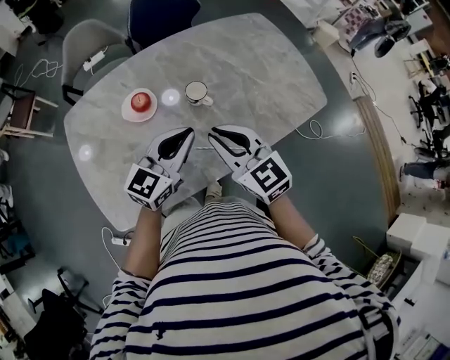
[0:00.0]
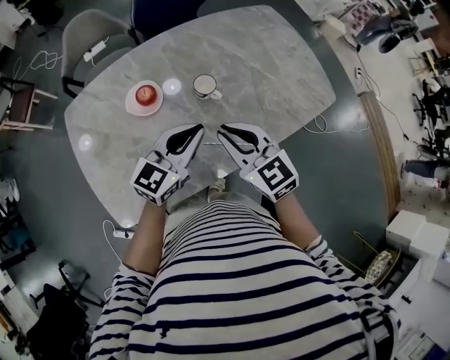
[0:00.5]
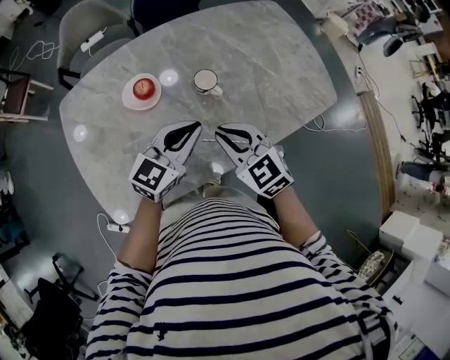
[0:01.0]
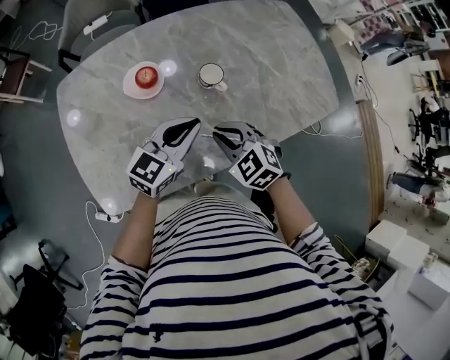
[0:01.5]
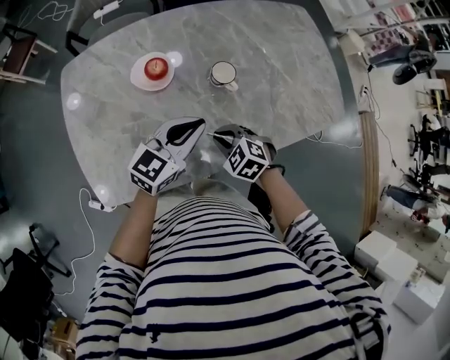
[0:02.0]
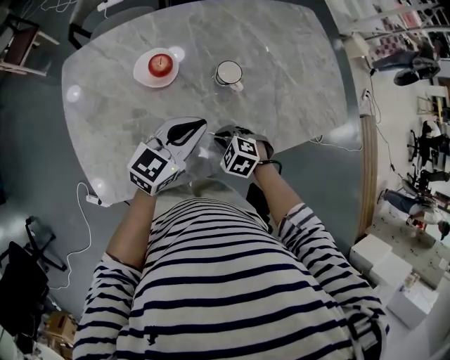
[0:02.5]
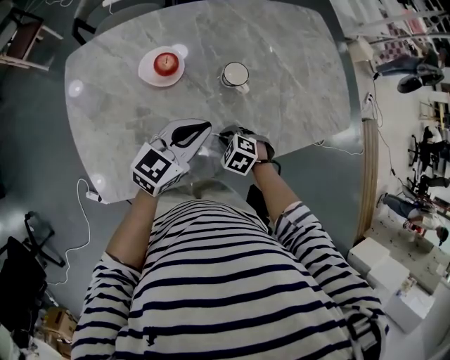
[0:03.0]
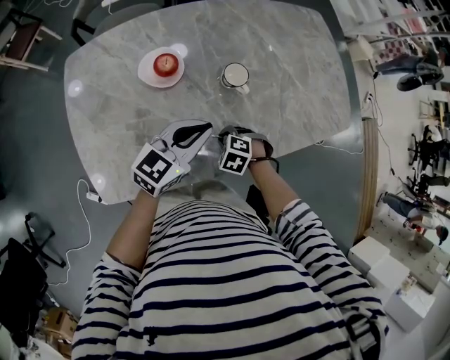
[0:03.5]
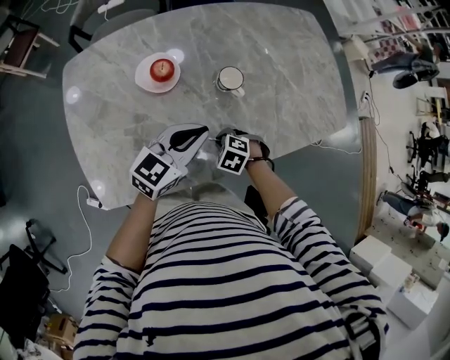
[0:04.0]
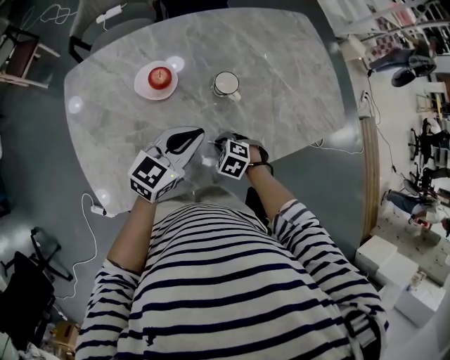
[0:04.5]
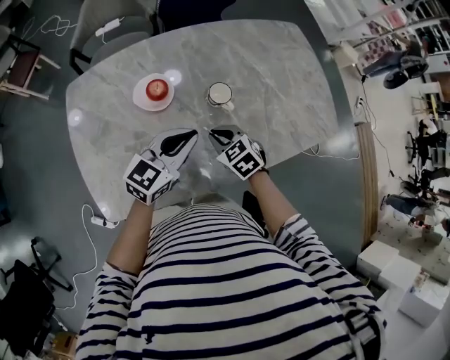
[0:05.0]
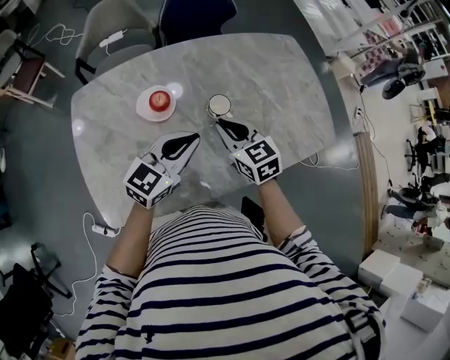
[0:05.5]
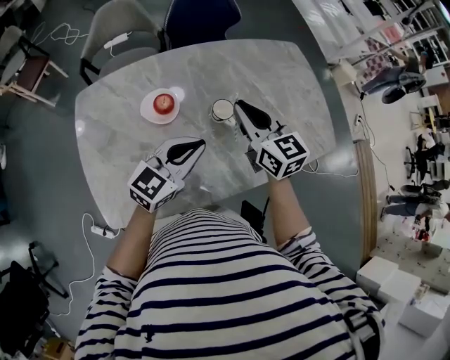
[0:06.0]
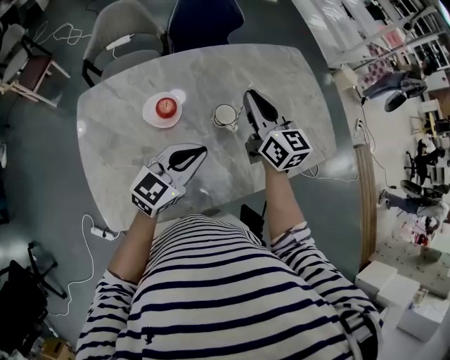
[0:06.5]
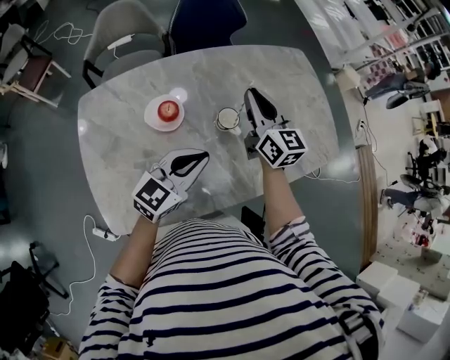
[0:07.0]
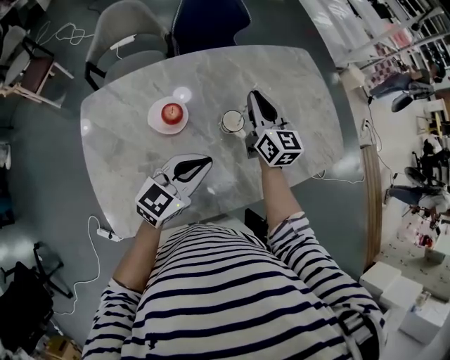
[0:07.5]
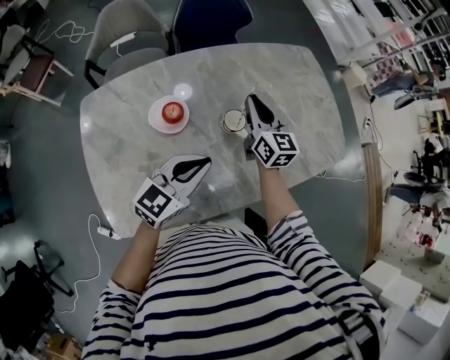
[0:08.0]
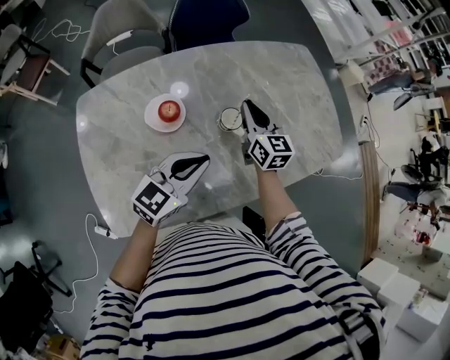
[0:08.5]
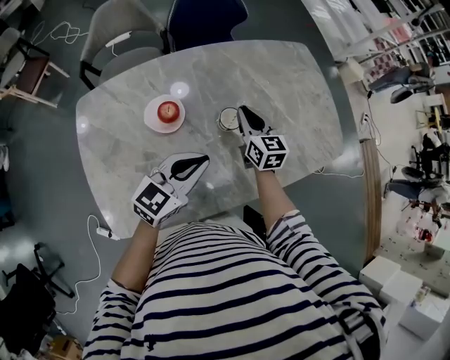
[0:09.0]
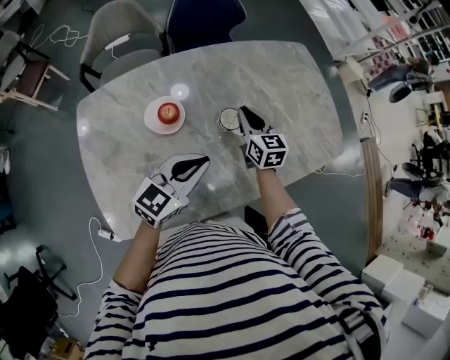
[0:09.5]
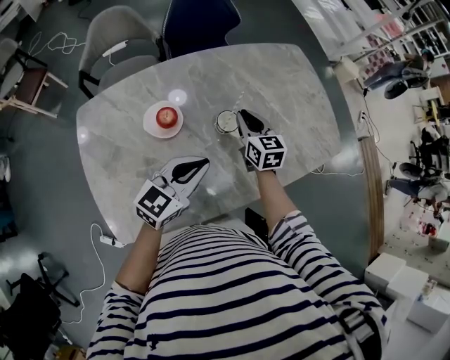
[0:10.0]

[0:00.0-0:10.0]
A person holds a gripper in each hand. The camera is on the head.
0:00.0 to 0:02.0: The left gripper heads downward, covering some 5 cm. Meanwhile the right gripper is displaced downward by about 20 cm, and tilts its fingers approximately 40 degrees downward.
0:02.0 to 0:04.0: The right gripper shifts roughly 10 cm downward.
0:04.0 to 0:06.0: The right gripper is displaced upward by approximately 30 cm, and angles its fingers upward, by approximately 60 degrees, while the left gripper travels upward by about 5 cm.
0:06.0 to 0:08.0: The right gripper is displaced forward and downward by some 10 cm.
0:08.0 to 0:10.0: The right gripper is displaced downward by approximately 5 cm.

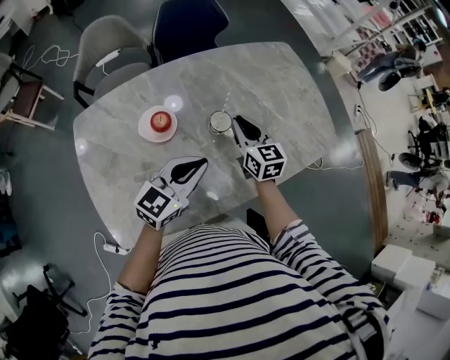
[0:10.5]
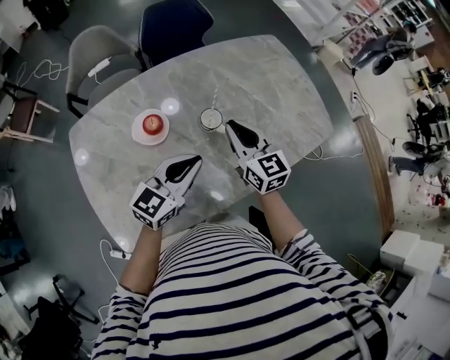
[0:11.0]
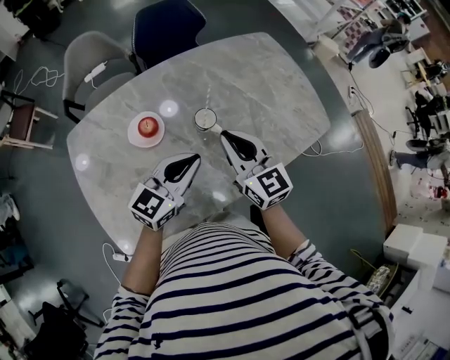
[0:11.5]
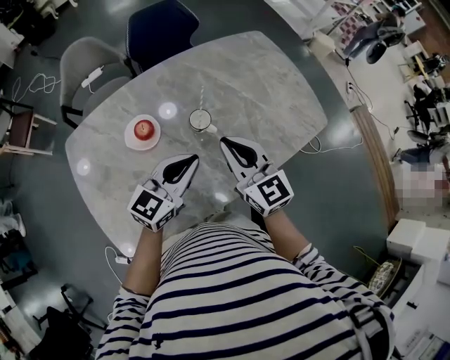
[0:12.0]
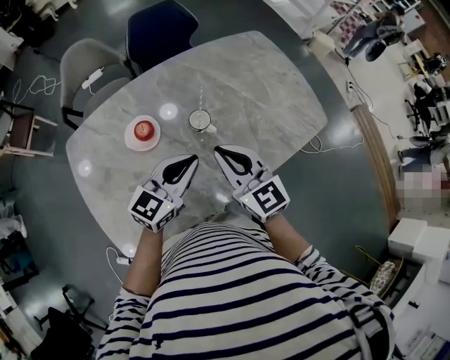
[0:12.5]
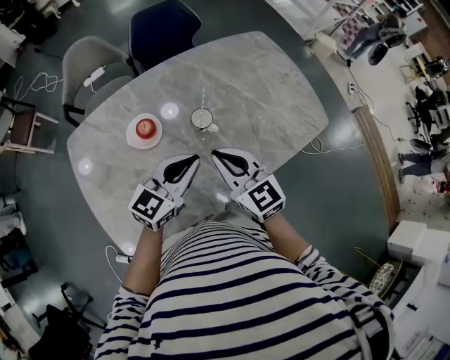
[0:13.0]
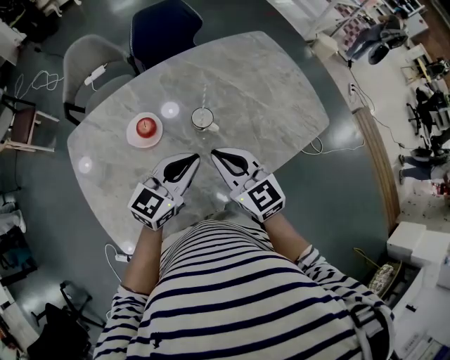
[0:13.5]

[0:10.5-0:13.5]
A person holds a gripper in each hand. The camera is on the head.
0:10.5 to 0:12.0: The right gripper is displaced backward and upward by some 15 cm.
0:12.0 to 0:13.5: There are only small adjustments of the grippers.

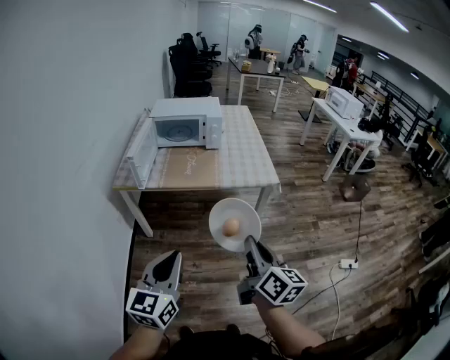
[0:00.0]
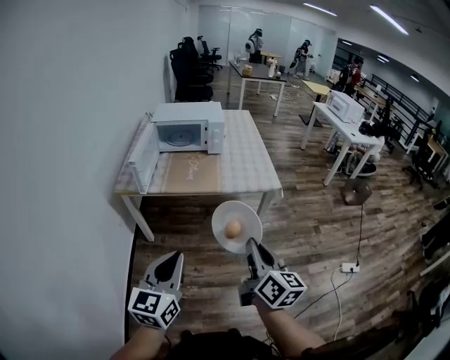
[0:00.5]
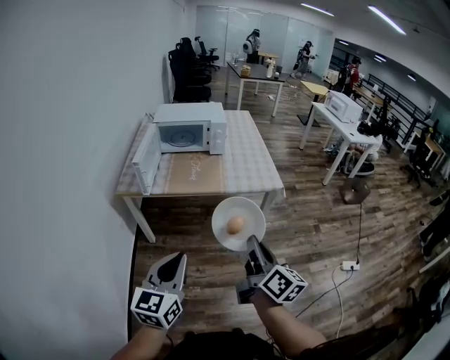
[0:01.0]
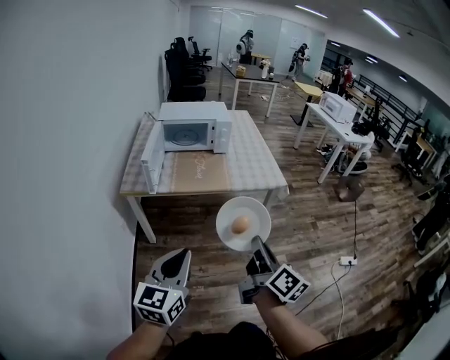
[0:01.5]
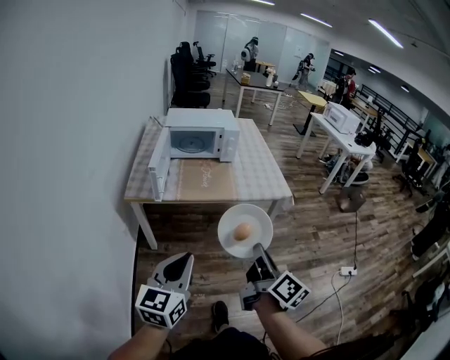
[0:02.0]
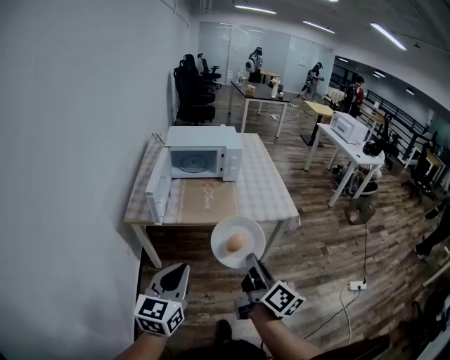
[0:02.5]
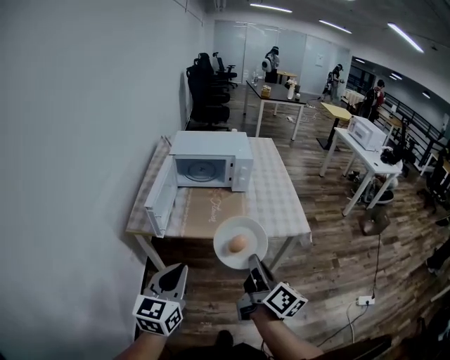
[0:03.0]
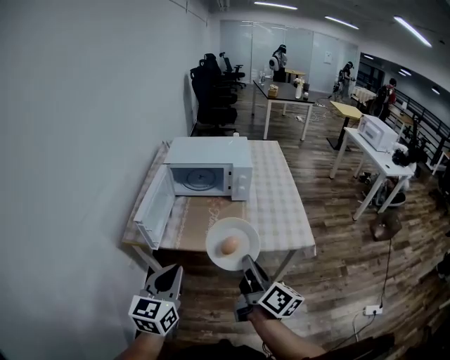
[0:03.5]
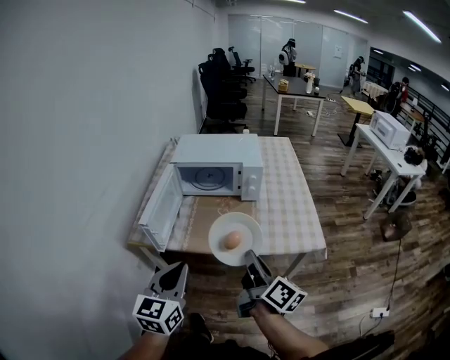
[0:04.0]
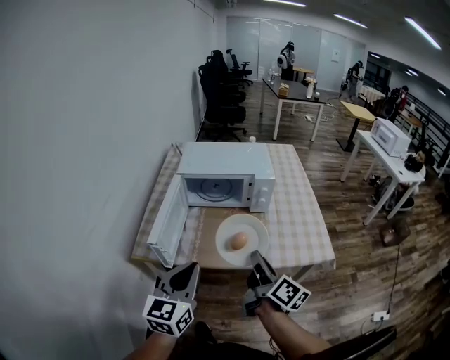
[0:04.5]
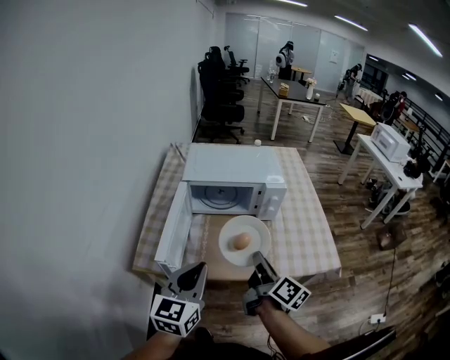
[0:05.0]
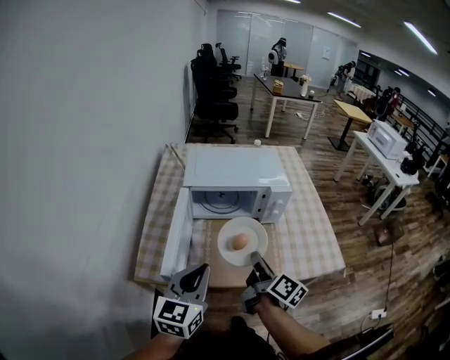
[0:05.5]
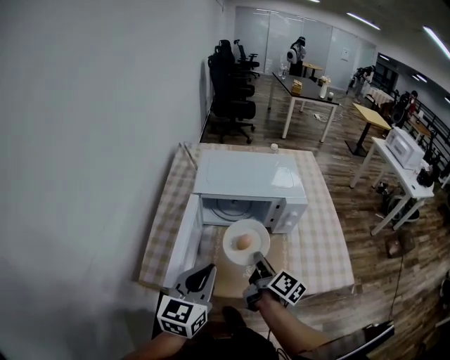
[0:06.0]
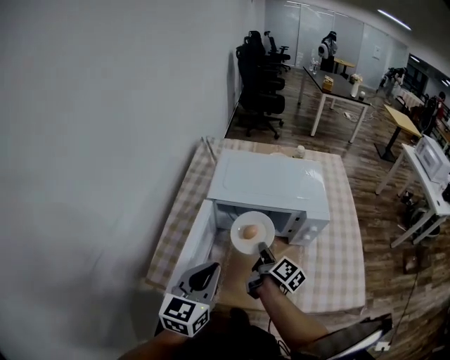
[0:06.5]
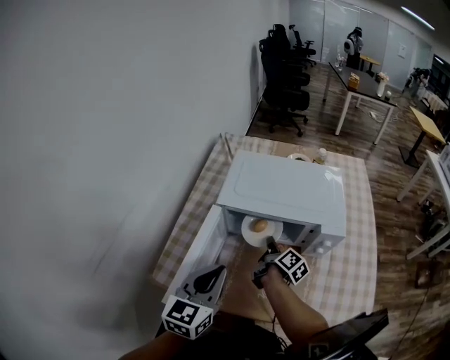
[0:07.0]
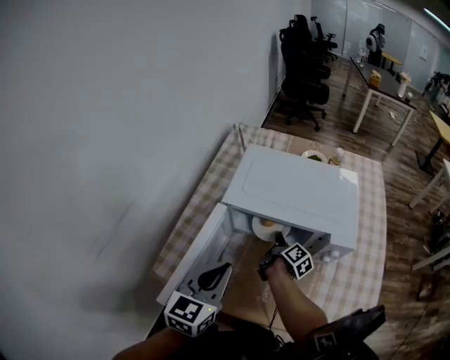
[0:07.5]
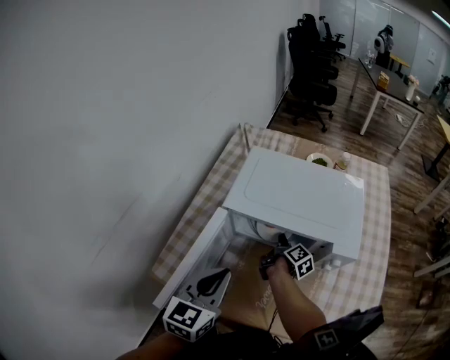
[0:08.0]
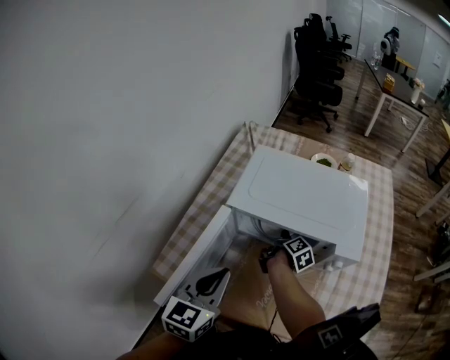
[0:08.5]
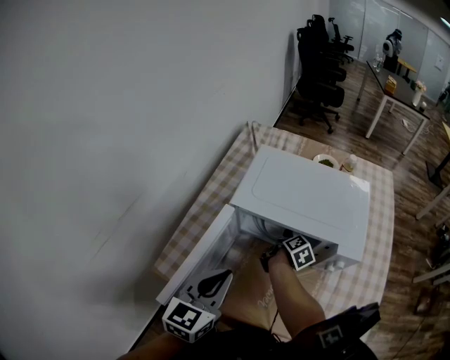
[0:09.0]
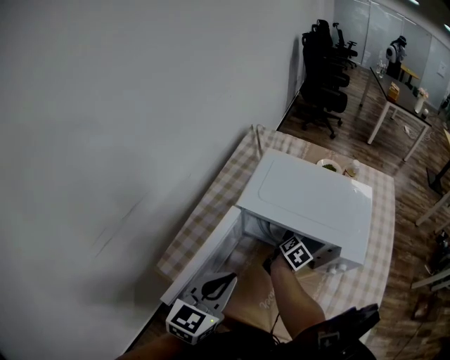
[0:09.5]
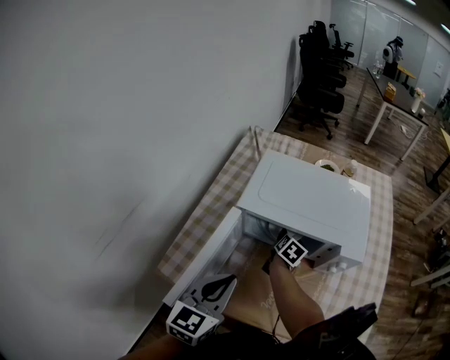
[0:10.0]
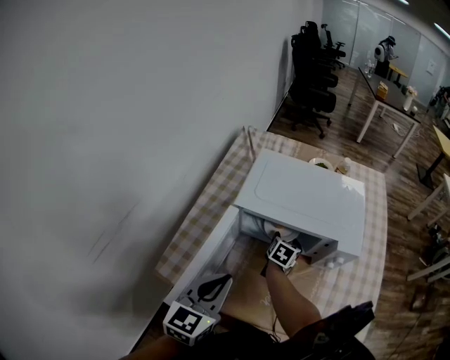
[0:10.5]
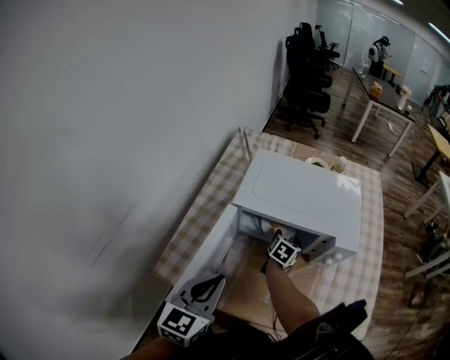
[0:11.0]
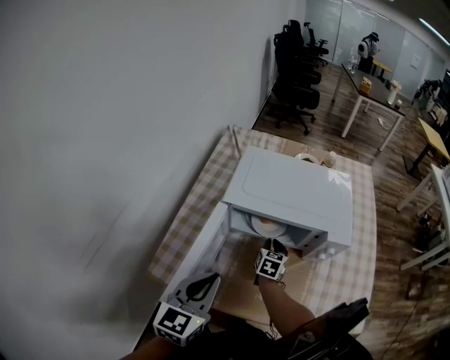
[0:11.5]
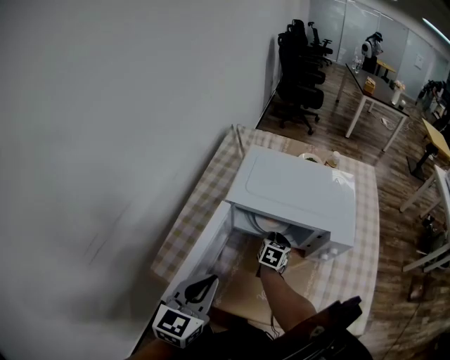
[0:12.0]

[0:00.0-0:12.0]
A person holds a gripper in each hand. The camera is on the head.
0:00.0 to 0:02.0: The grippers both shift to the left by approximately 10 cm.
0:02.0 to 0:04.0: The grippers both shift forward by approximately 30 cm.
0:04.0 to 0:06.0: The left gripper heads forward, covering some 20 cm; the right gripper heads forward, to the left and downward, covering approximately 30 cm.
0:06.0 to 0:08.0: The right gripper heads forward and downward, covering approximately 30 cm, and swivels roughly 20 degrees. The left gripper goes approximately 10 cm forward.
0:08.0 to 0:10.0: The right gripper rolls counterclockwise, seen from behind, by some 40 degrees, and opens.
0:10.0 to 0:12.0: The right gripper changes its angle by approximately 20 degrees, and closes.

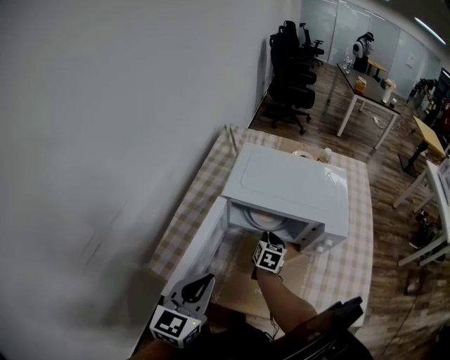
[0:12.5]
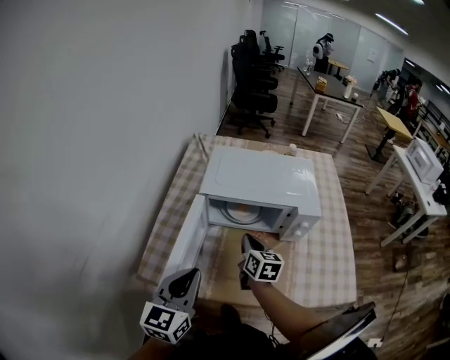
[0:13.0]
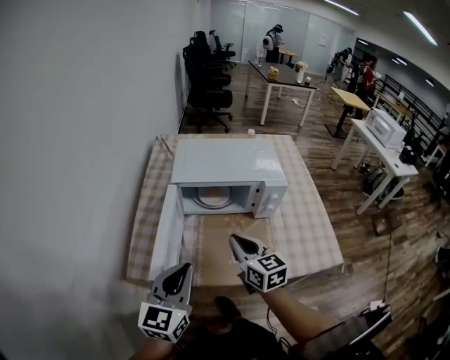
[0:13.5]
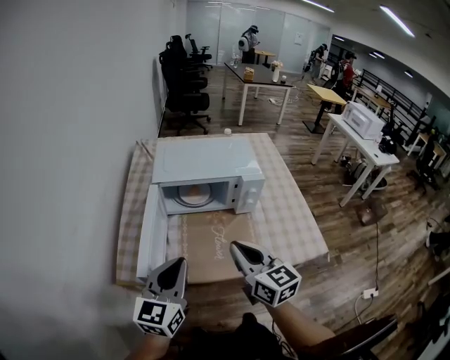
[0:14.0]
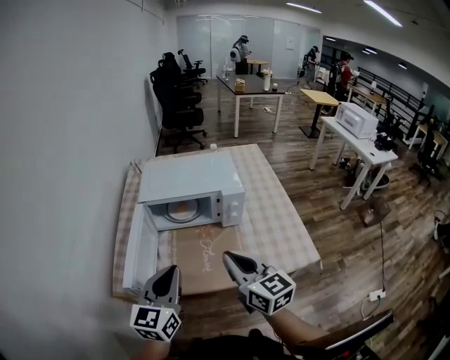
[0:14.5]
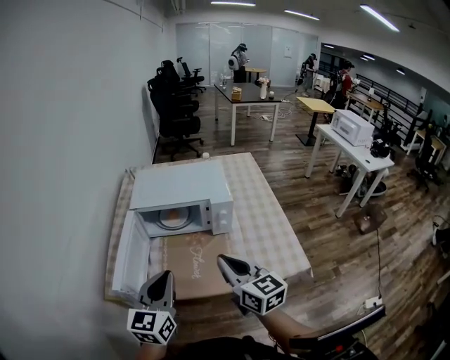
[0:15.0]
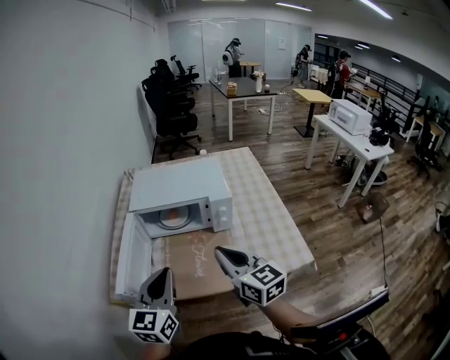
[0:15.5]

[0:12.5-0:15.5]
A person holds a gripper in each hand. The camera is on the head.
0:12.5 to 0:14.0: The right gripper is displaced backward and upward by approximately 40 cm, and changes its angle by roughly 30 degrees, while the left gripper is displaced backward by about 10 cm.
0:14.0 to 0:15.5: Both grippers move to the right, some 10 cm.
